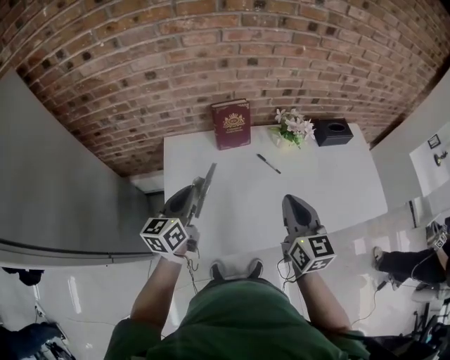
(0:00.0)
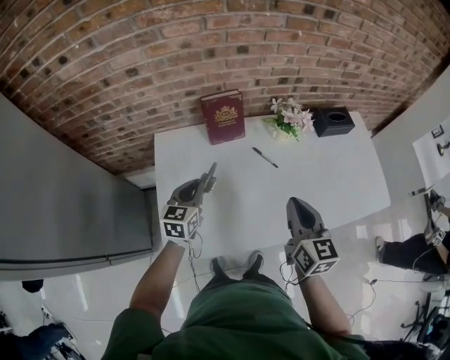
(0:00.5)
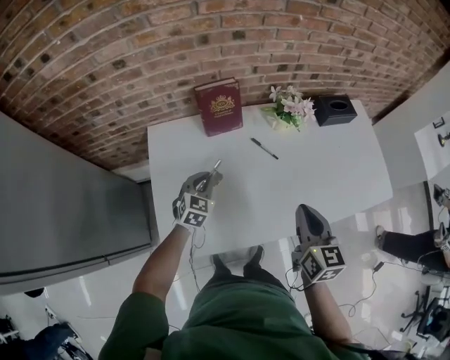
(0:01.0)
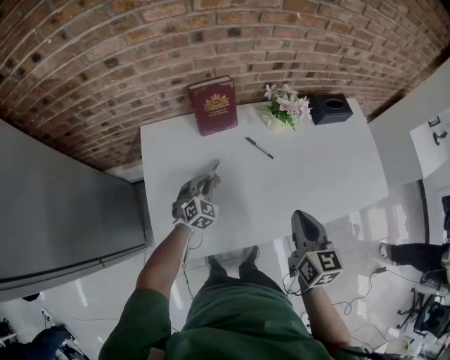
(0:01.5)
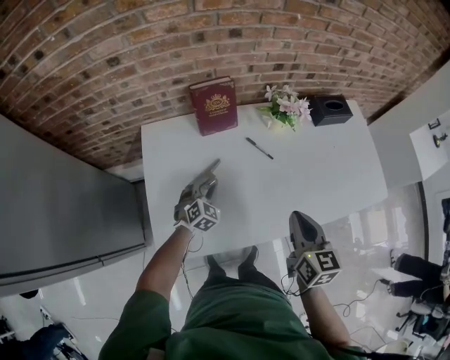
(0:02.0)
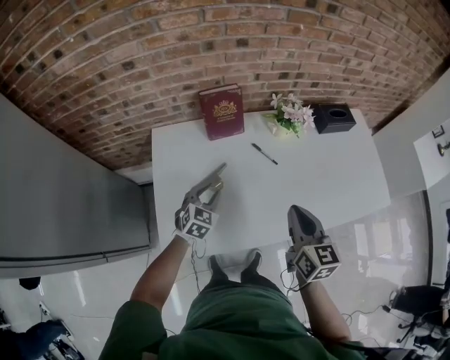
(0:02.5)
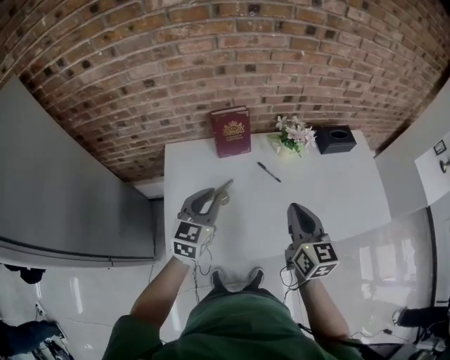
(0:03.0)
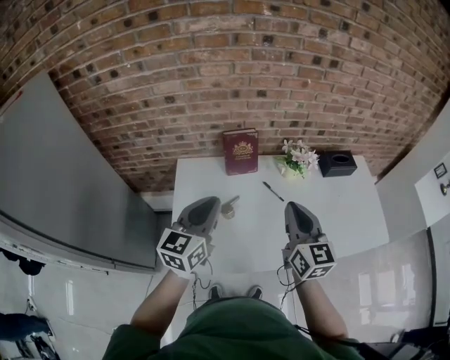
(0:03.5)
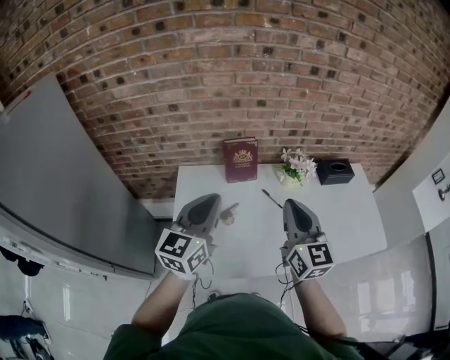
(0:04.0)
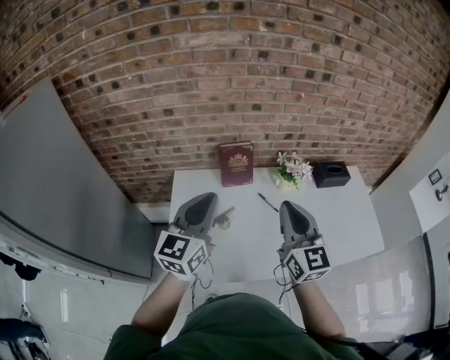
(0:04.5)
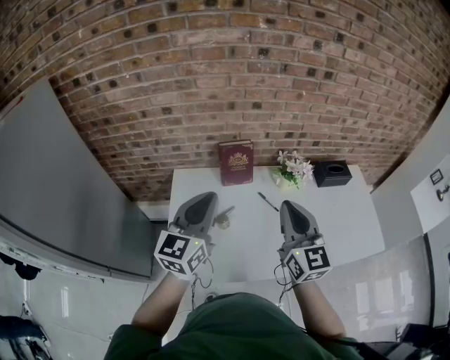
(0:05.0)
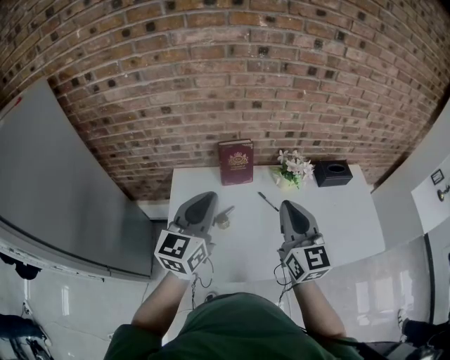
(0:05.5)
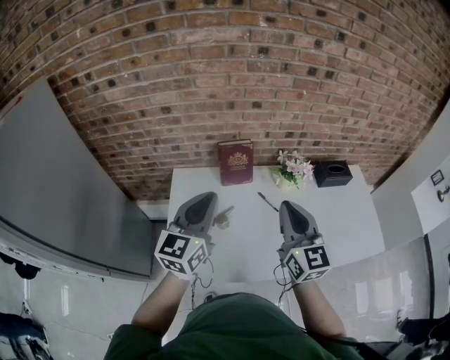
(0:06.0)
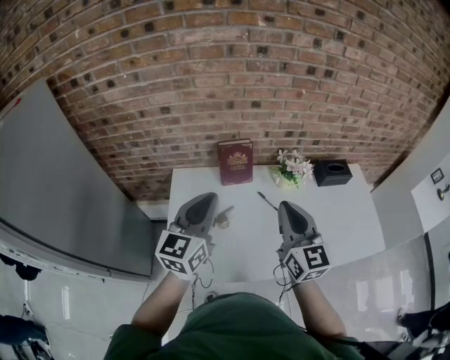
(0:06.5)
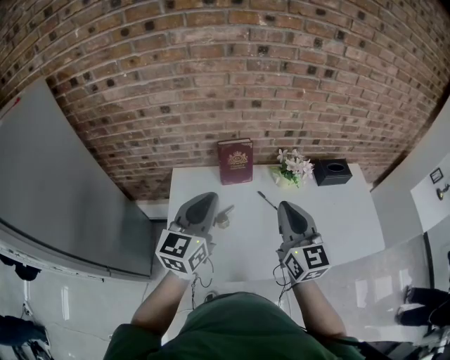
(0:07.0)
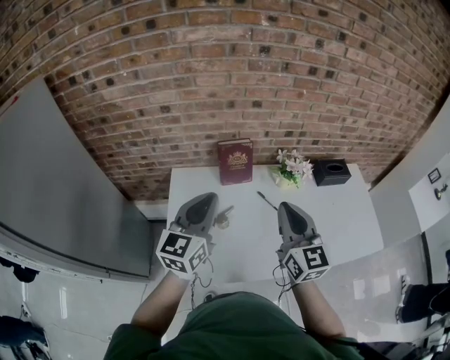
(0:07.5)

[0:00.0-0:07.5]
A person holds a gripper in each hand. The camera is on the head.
0:00.0 to 0:02.0: The left gripper moves downward, roughly 25 cm, and rolls clockwise, seen from behind, by approximately 60 degrees. The right gripper goes approximately 10 cm downward and to the right.
0:02.0 to 0:04.0: The right gripper moves upward, roughly 15 cm, and swivels roughly 30 degrees; the left gripper moves upward, some 40 cm, and points its fingers some 40 degrees further upward.
0:04.0 to 0:07.5: There are only small adjustments of the grippers.

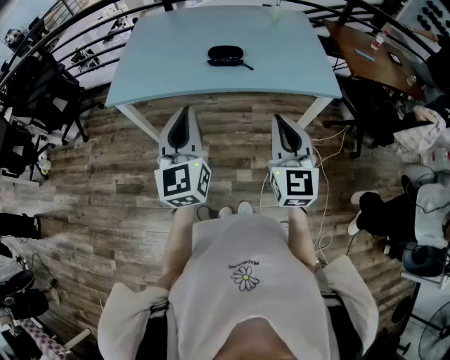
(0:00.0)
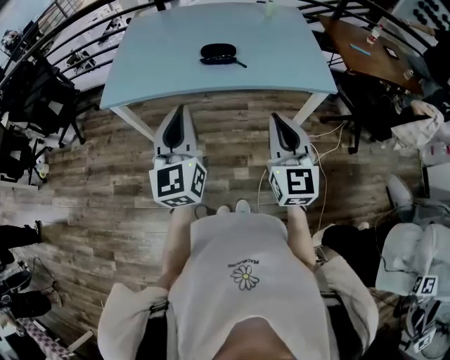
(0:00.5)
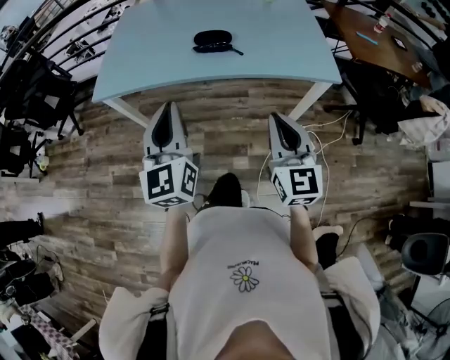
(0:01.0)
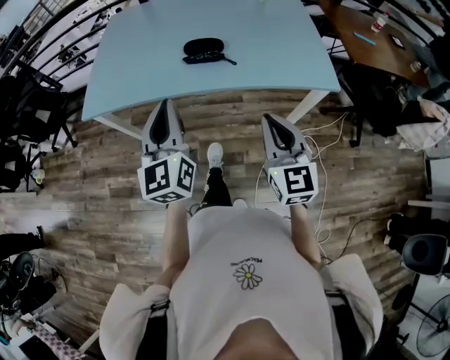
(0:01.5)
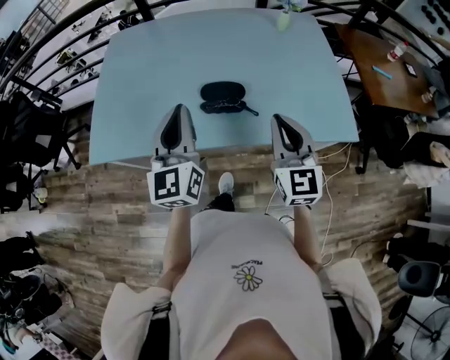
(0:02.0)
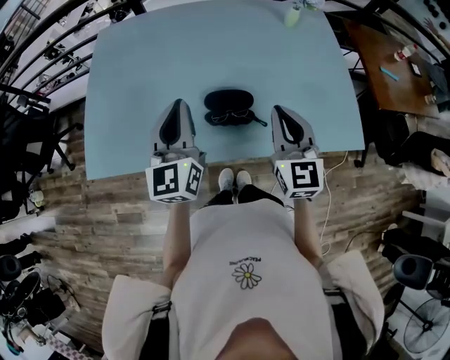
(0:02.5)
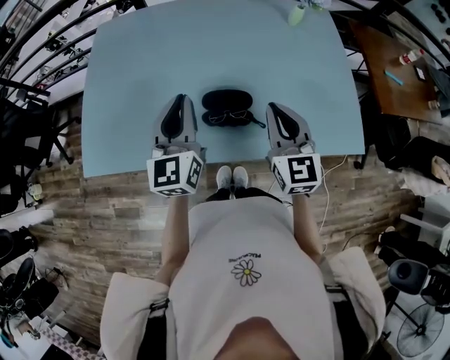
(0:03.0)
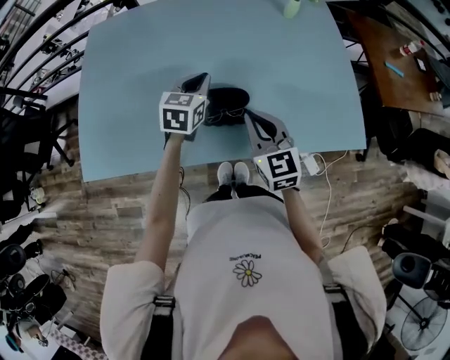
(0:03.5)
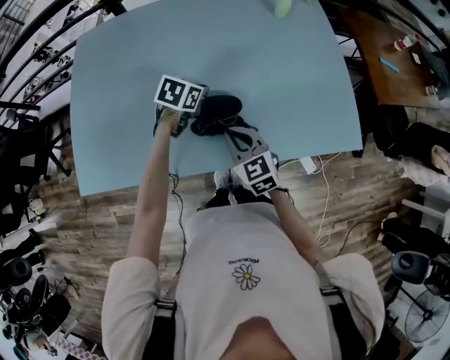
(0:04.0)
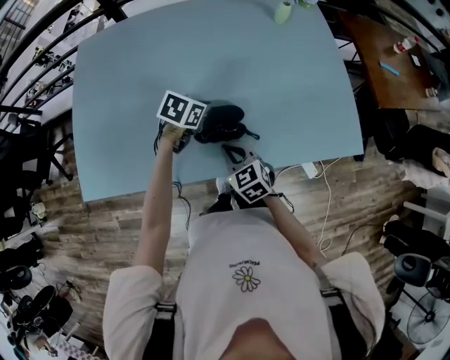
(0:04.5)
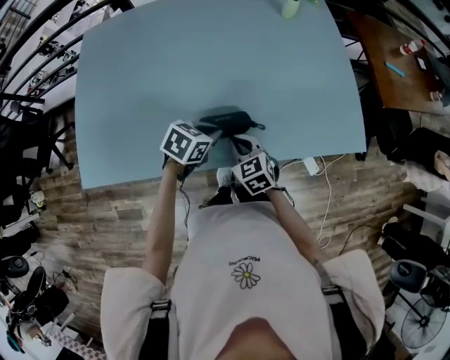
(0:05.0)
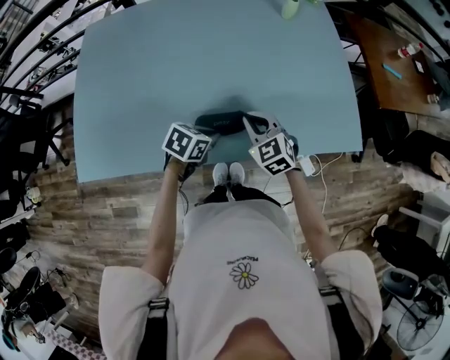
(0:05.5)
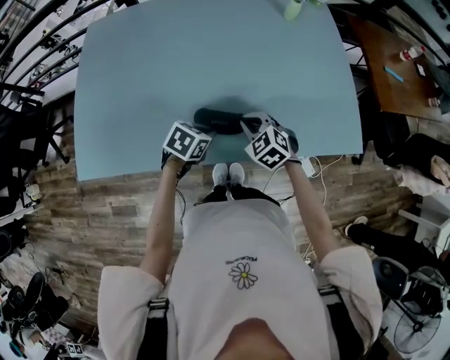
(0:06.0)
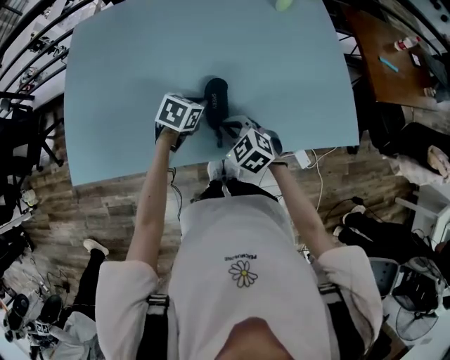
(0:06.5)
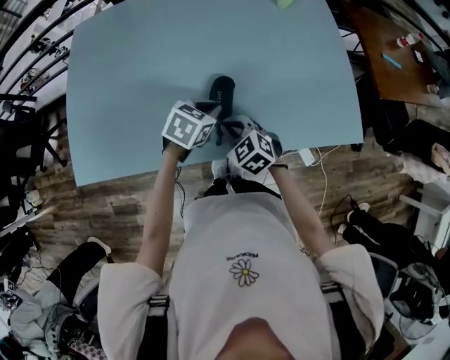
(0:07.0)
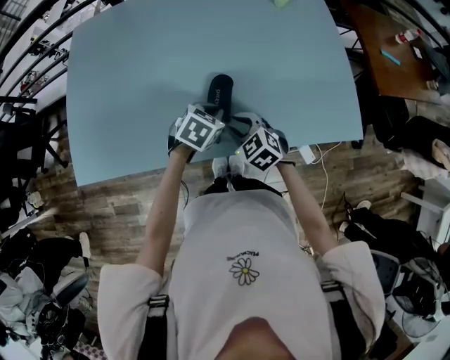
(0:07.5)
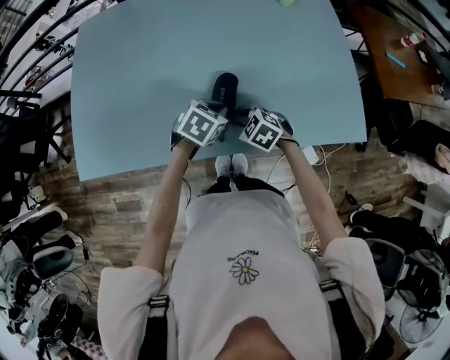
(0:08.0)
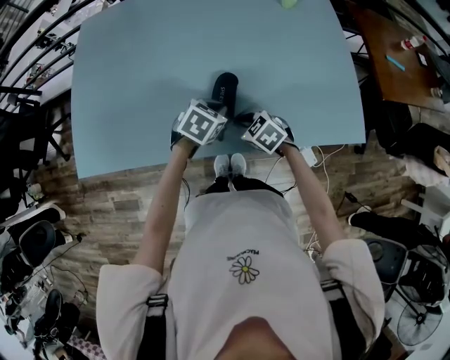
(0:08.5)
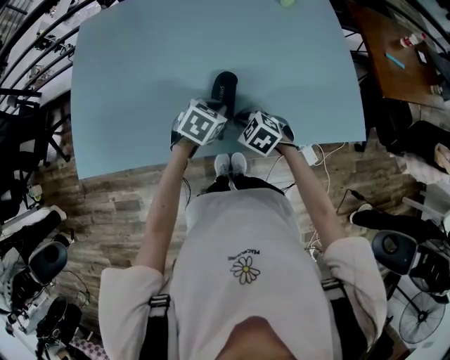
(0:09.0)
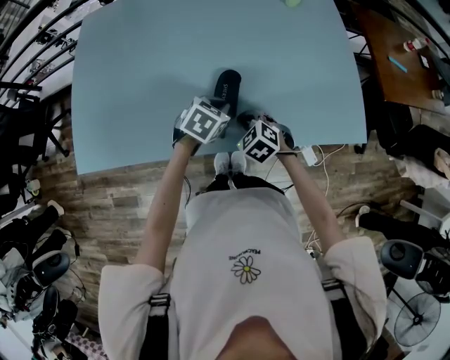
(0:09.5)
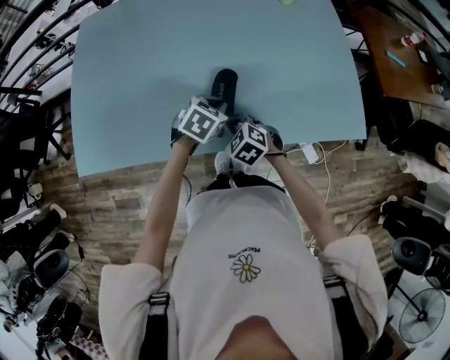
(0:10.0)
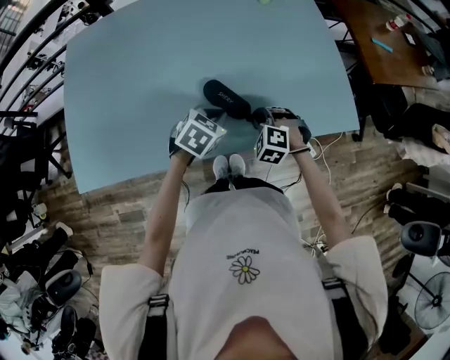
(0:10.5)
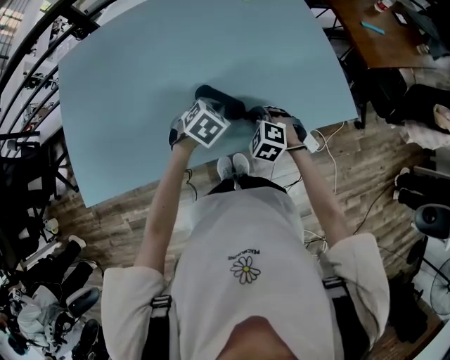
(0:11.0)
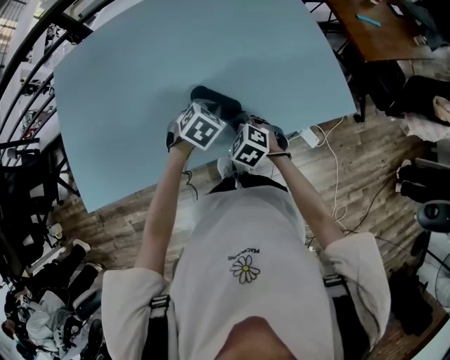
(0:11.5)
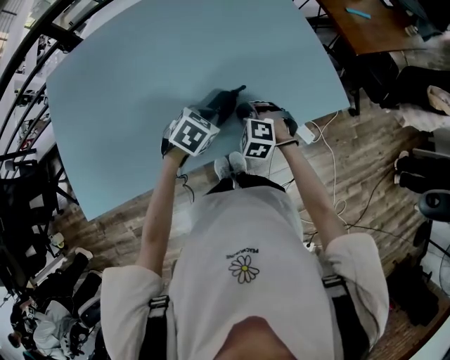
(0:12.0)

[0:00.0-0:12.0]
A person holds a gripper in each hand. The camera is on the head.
0:00.0 to 0:02.0: Both grippers move forward, approximately 35 cm.
0:02.0 to 0:04.0: The right gripper shifts some 25 cm downward, forward and to the left, and rotates about 30 degrees, while the left gripper moves forward and downward, approximately 35 cm, and tips its fingers downward by roughly 60 degrees.
0:04.0 to 0:06.0: The right gripper shifts by approximately 5 cm, and swivels roughly 30 degrees; the left gripper moves backward, about 15 cm.
0:06.0 to 0:08.0: The right gripper changes place by about 5 cm, and opens its fingers.
0:08.0 to 0:10.0: The right gripper closes.
0:10.0 to 0:12.0: The left gripper heads to the right, covering about 10 cm, while the right gripper goes left and right, about 15 cm each way, reversing 2 times, and changes its angle by roughly 20 degrees.

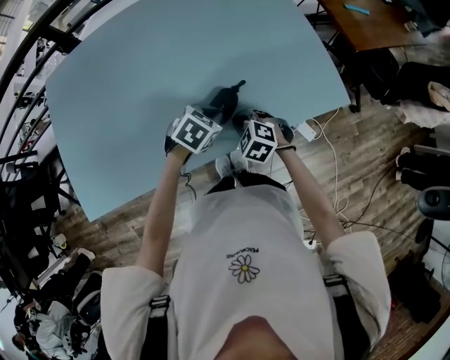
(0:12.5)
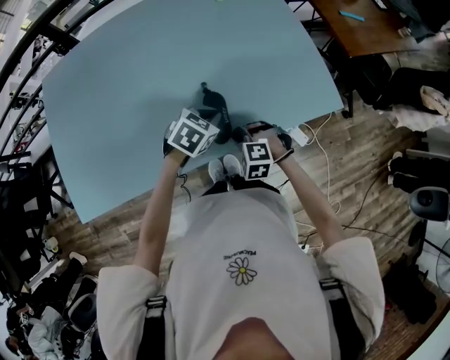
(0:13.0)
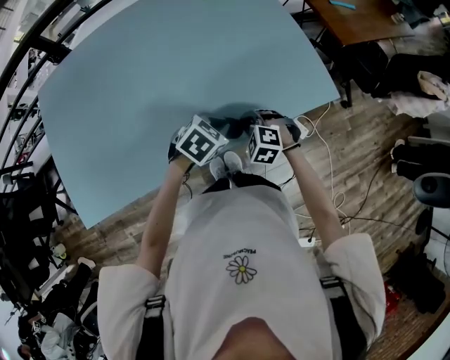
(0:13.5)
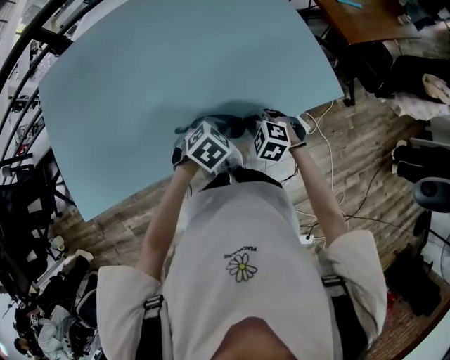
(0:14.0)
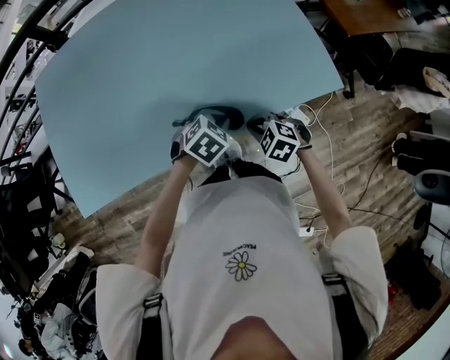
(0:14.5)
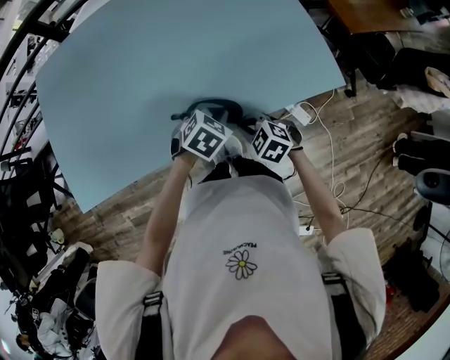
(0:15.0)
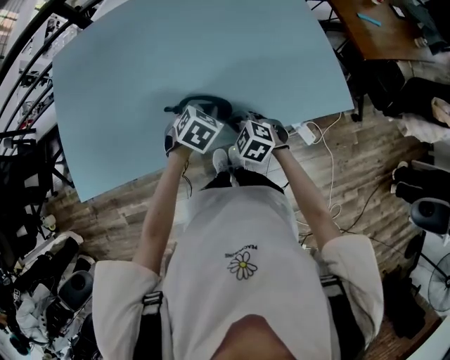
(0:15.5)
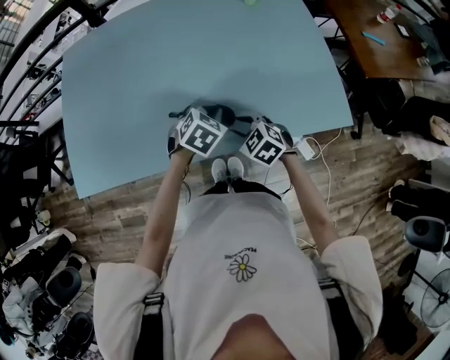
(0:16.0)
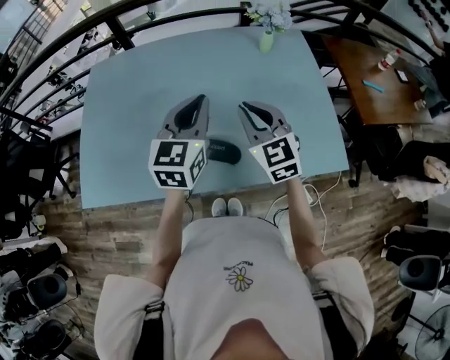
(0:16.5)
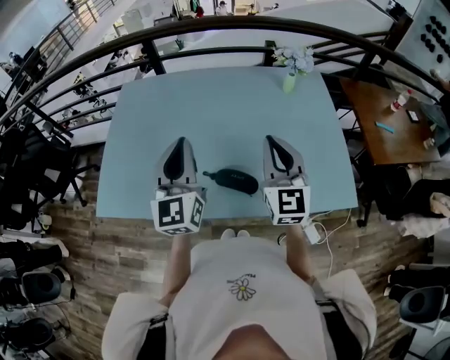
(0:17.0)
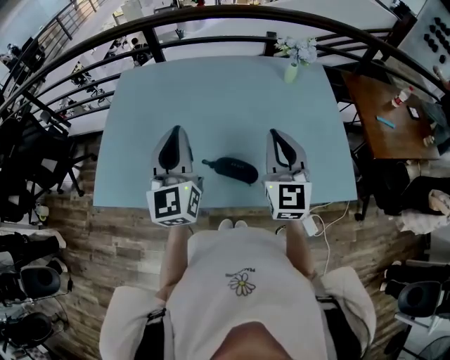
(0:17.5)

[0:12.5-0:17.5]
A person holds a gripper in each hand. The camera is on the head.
0:12.5 to 0:15.0: The right gripper moves forward and backward over about 5 cm, changing direction 2 times. The left gripper moves some 5 cm.
0:15.0 to 0:17.5: The right gripper heads upward, covering some 30 cm, tilts its fingers roughly 60 degrees upward, and opens and closes again. The left gripper shifts about 40 cm upward and to the left, and tips its fingers upward by approximately 70 degrees.

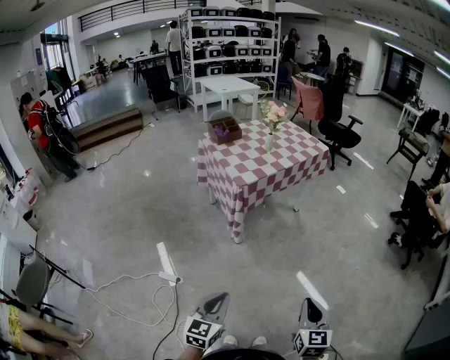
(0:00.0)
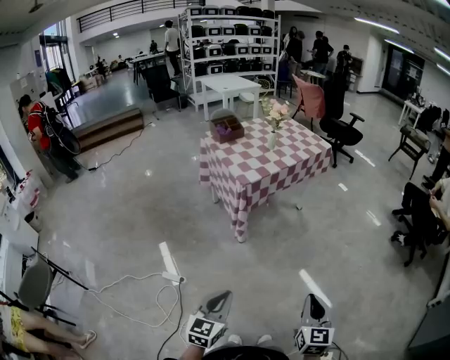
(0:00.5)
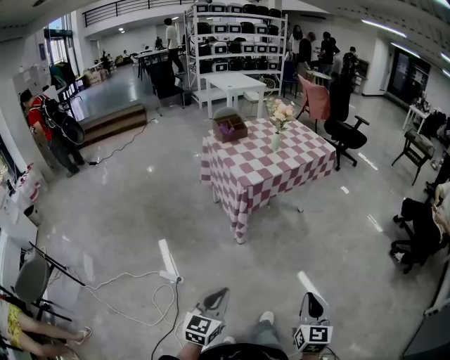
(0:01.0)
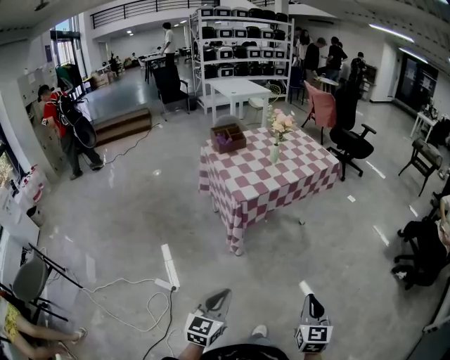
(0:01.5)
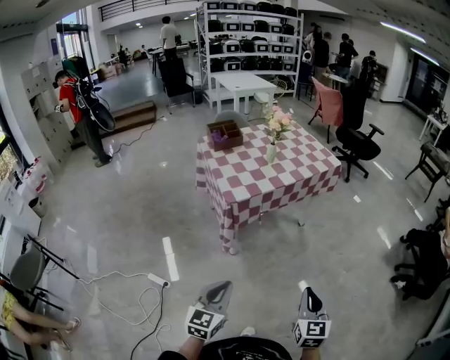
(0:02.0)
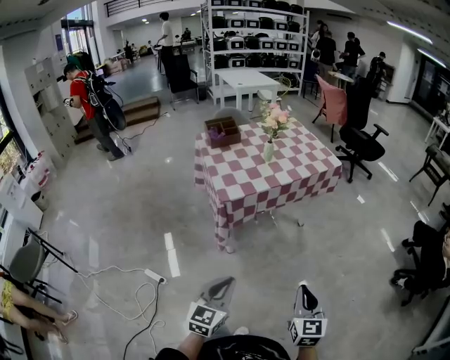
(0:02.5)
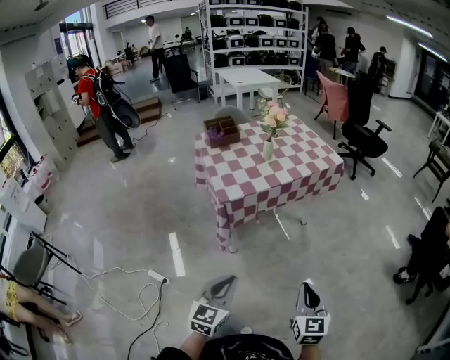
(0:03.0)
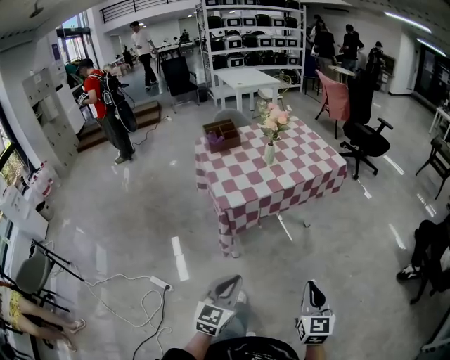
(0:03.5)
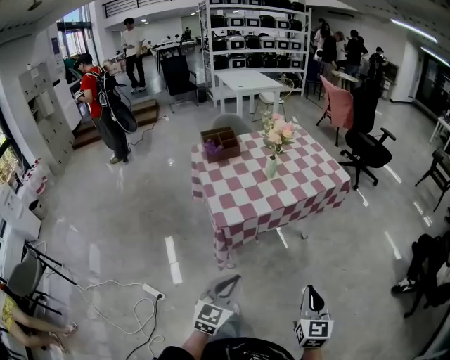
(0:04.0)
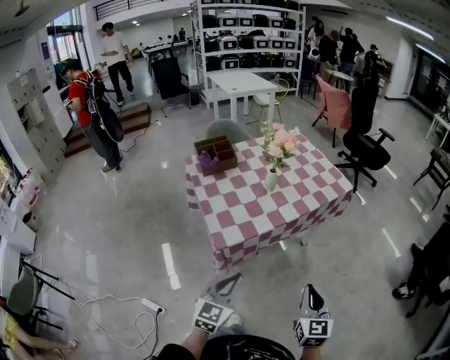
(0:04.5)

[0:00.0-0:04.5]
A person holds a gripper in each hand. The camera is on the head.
0:00.0 to 0:02.0: The grippers both shift forward by some 20 cm.
0:02.0 to 0:04.5: The two grippers go approximately 25 cm forward.
